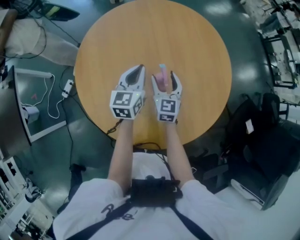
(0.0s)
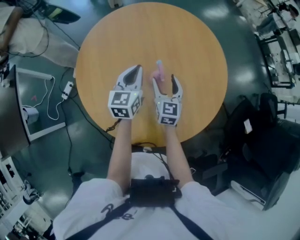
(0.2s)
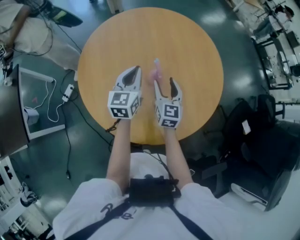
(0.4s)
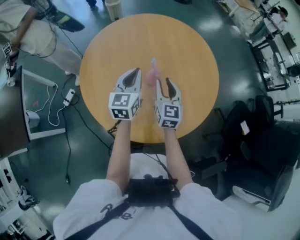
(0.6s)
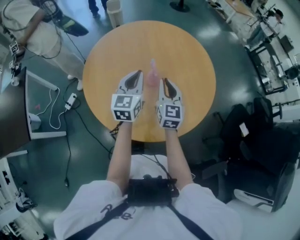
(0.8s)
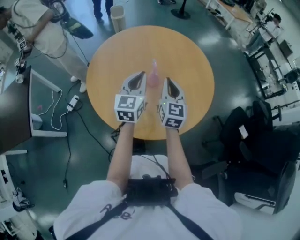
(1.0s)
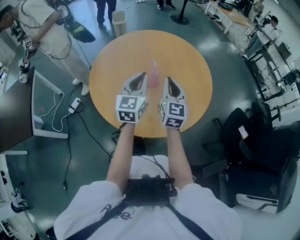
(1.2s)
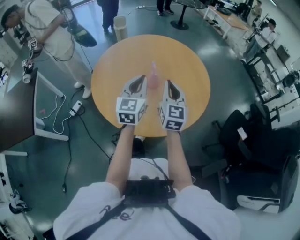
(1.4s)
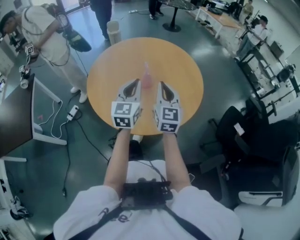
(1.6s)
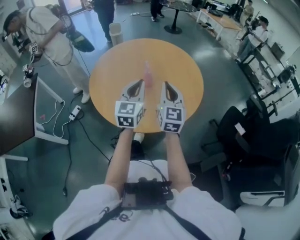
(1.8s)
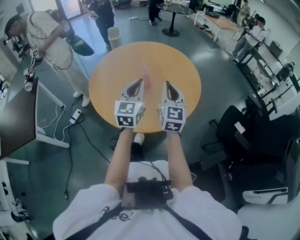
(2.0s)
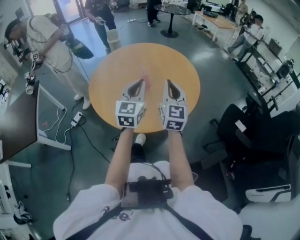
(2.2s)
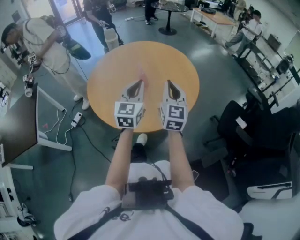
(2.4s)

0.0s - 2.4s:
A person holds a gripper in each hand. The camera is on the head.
0.0s - 1.2s: The left gripper is displaced backward and upward by some 25 cm, while the right gripper heads upward and backward, covering some 25 cm, and closes up.
1.2s - 2.4s: The left gripper moves backward and to the right, roughly 10 cm. The right gripper is displaced backward, to the right and upward by roughly 15 cm.

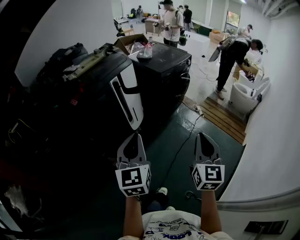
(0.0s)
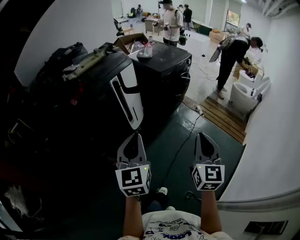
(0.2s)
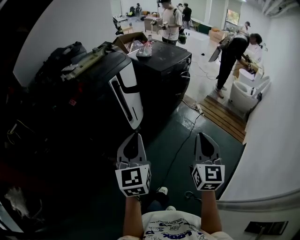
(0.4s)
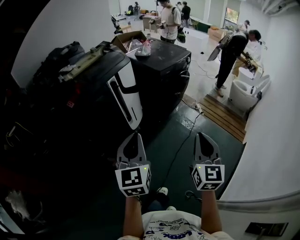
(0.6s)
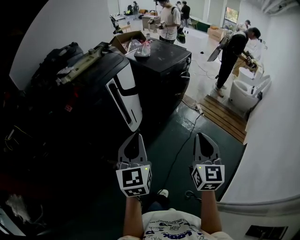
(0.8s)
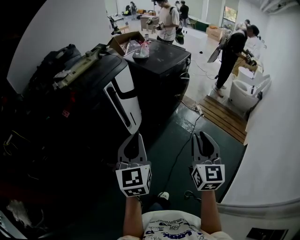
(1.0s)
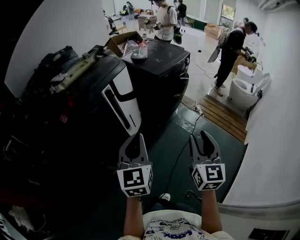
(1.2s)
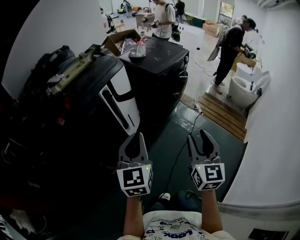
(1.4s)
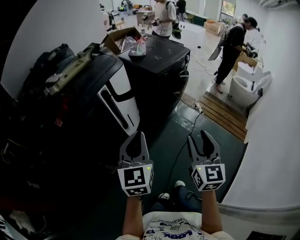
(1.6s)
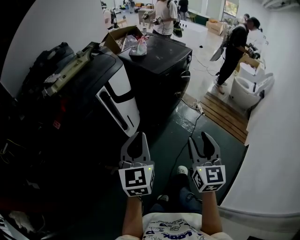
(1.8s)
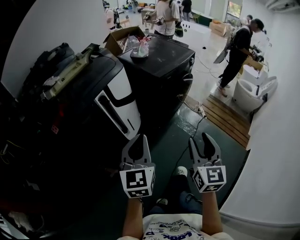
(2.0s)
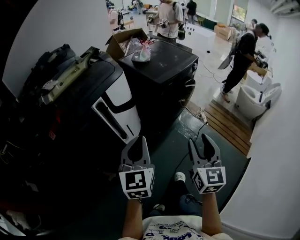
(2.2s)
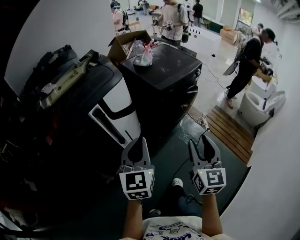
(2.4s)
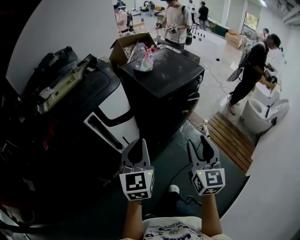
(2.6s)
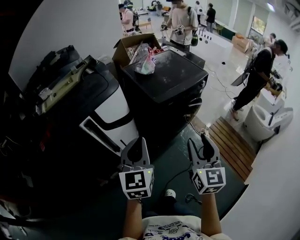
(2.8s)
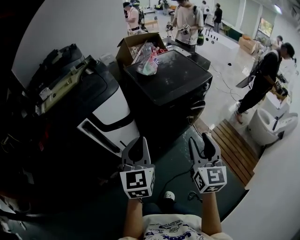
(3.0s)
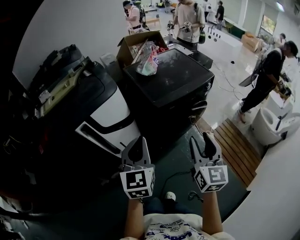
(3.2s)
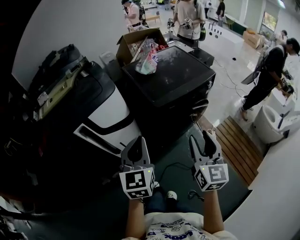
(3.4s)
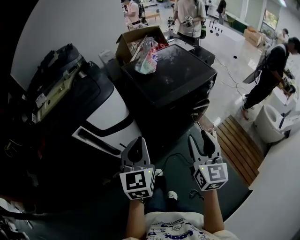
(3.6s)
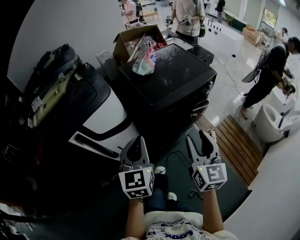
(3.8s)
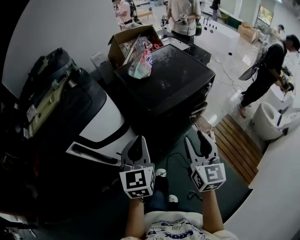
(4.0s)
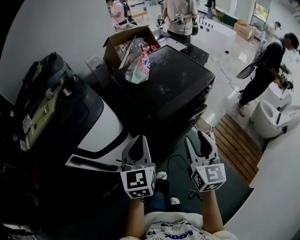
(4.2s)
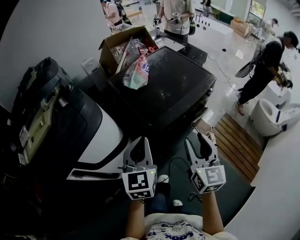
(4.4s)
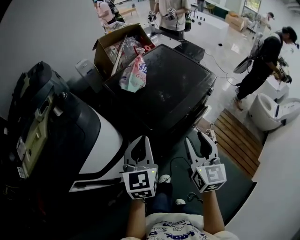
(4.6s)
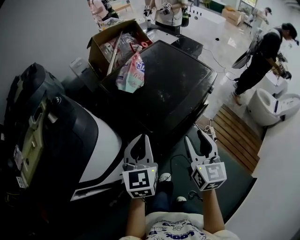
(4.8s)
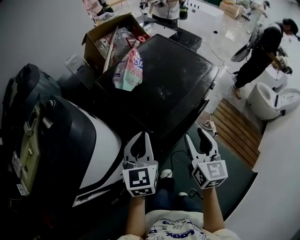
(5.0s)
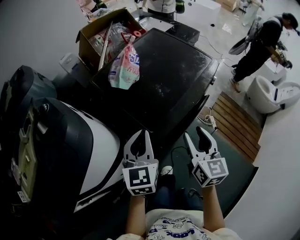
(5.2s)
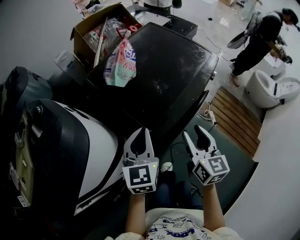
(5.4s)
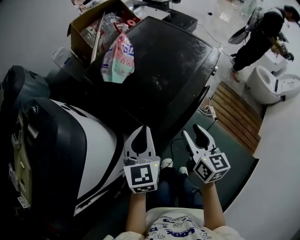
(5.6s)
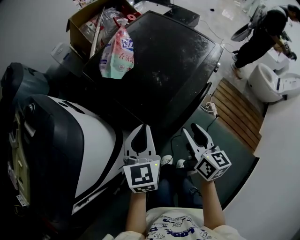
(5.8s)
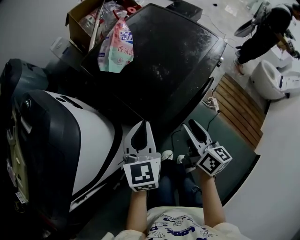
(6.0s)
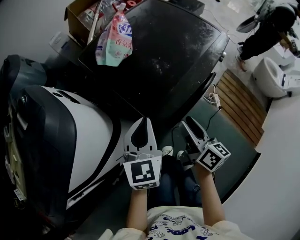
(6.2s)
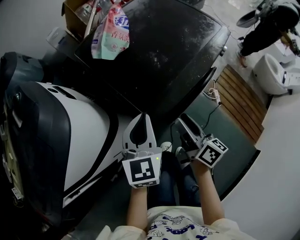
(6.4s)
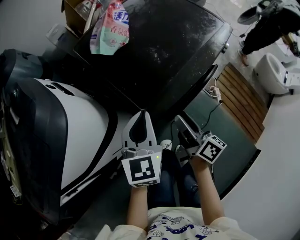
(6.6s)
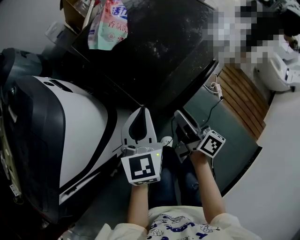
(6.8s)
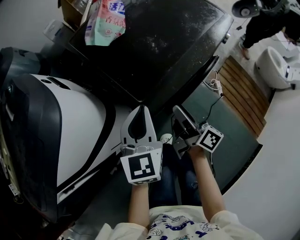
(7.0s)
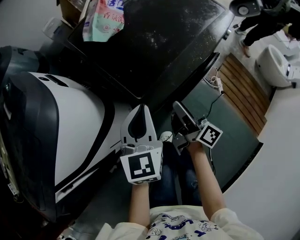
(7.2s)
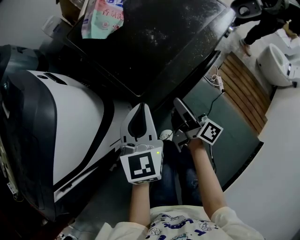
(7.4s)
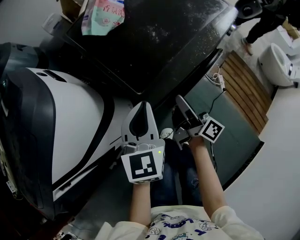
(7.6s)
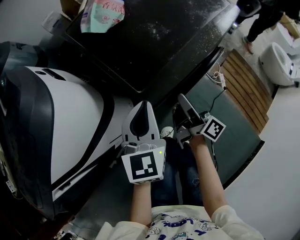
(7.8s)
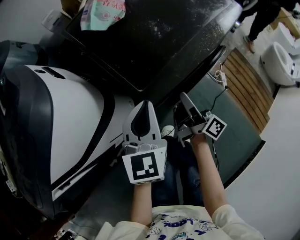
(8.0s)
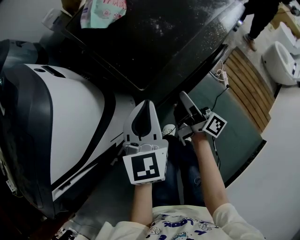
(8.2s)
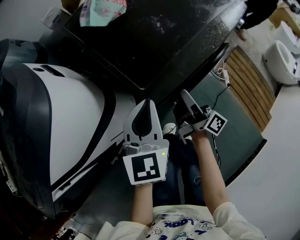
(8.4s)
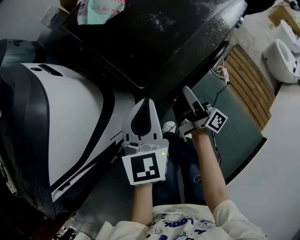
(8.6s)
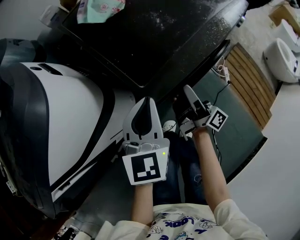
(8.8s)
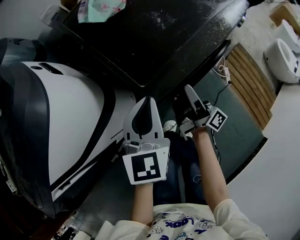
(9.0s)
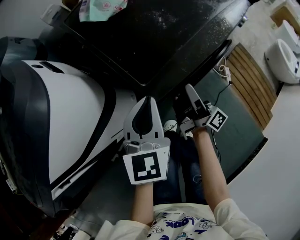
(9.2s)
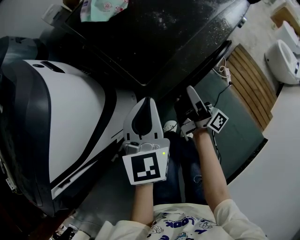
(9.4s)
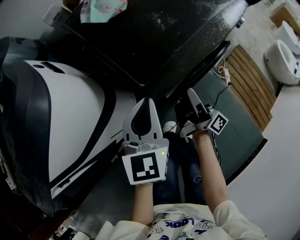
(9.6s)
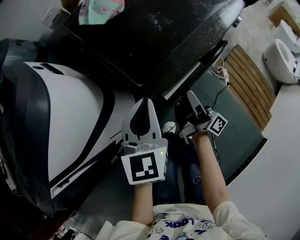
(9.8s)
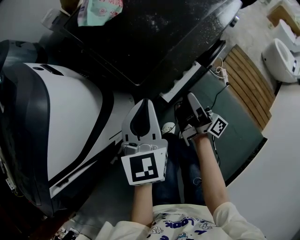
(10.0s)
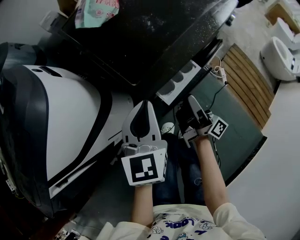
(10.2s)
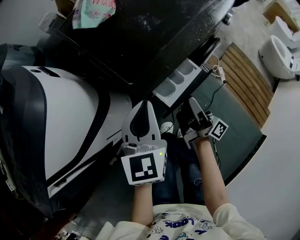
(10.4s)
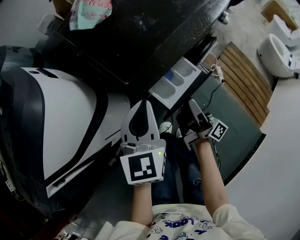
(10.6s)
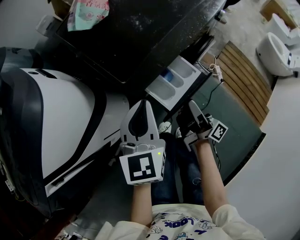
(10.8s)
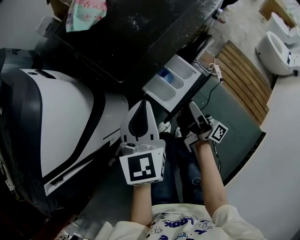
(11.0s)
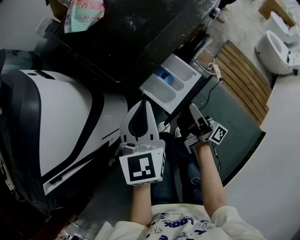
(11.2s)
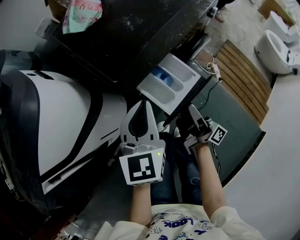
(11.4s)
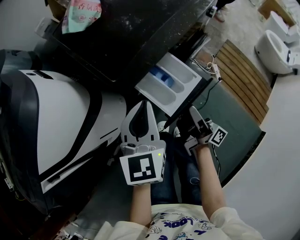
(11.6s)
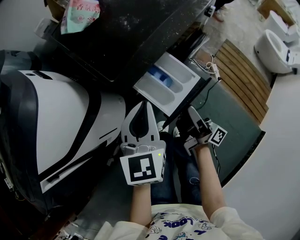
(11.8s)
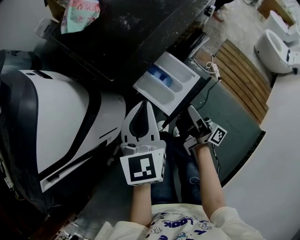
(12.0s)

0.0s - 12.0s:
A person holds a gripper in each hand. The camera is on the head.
0.0s - 1.6s: Both grippers move forward, about 20 cm. The right gripper opens.
1.6s - 3.0s: The grippers both shift forward and to the right by approximately 35 cm.
3.0s - 4.4s: The grippers both shift forward by approximately 25 cm.
4.4s - 6.0s: The right gripper goes roughly 20 cm downward and forward, and rotates some 40 degrees, while the left gripper travels forward and downward by roughly 20 cm.
6.0s - 7.6s: The right gripper moves downward, some 10 cm, and turns by roughly 40 degrees; the left gripper moves downward, some 5 cm.
7.6s - 9.0s: The grippers move only a little.
9.0s - 10.4s: The right gripper travels backward by about 5 cm.
10.4s - 12.0s: The right gripper goes roughly 5 cm backward. The left gripper is displaced to the right by approximately 5 cm.

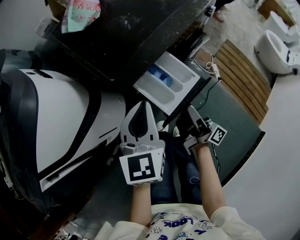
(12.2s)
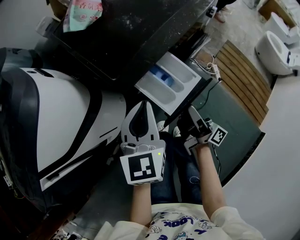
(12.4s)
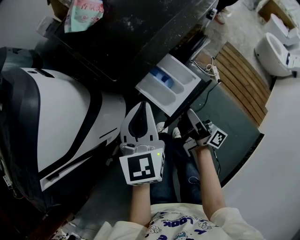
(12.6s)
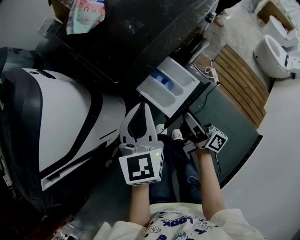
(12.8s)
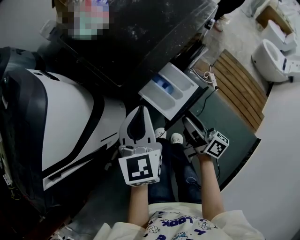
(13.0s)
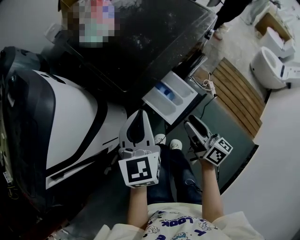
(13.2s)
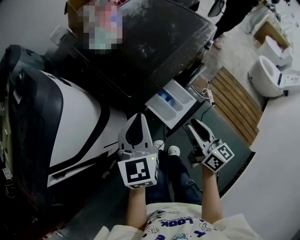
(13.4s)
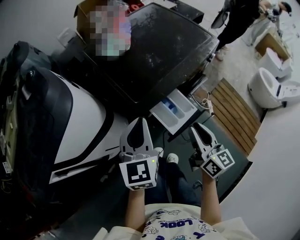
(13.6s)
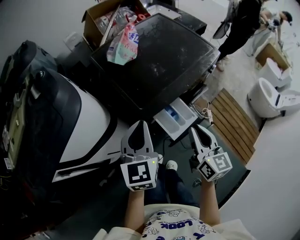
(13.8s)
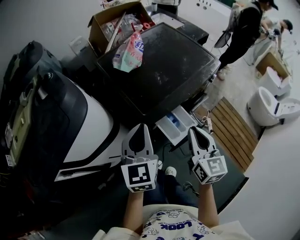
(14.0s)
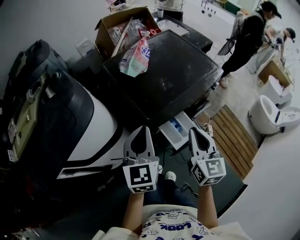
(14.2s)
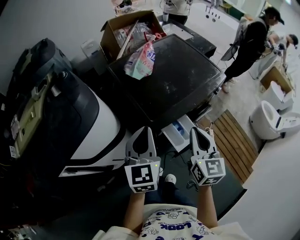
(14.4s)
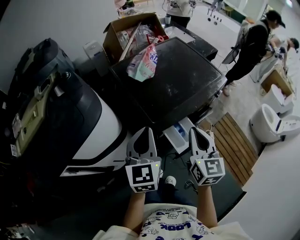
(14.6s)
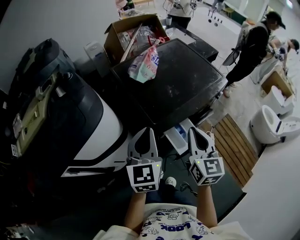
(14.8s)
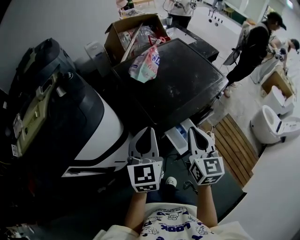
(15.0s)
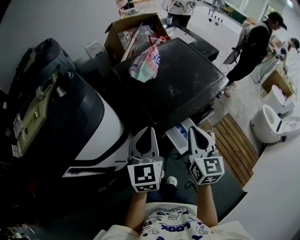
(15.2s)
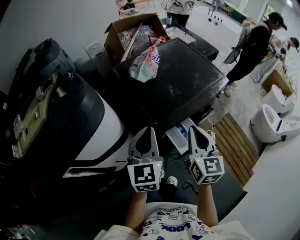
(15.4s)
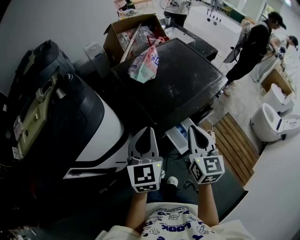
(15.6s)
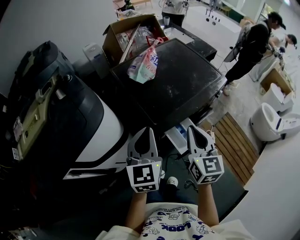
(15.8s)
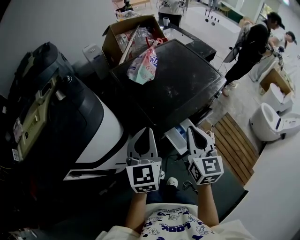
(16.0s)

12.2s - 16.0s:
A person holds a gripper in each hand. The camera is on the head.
12.2s - 13.4s: Both grippers move upward, some 10 cm. The right gripper twists about 50 degrees counterclockwise, seen from behind.
13.4s - 14.8s: The two grippers go approximately 15 cm upward and to the left. The right gripper rotates roughly 30 degrees, and closes.
14.8s - 16.0s: Neither gripper changes place.

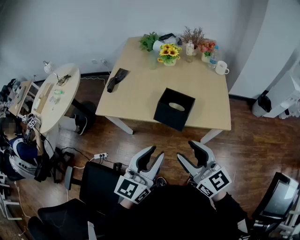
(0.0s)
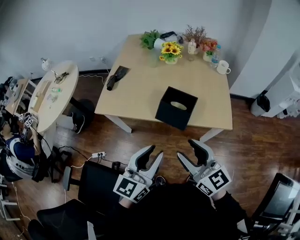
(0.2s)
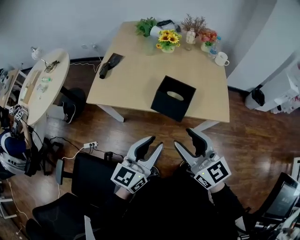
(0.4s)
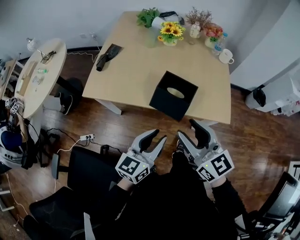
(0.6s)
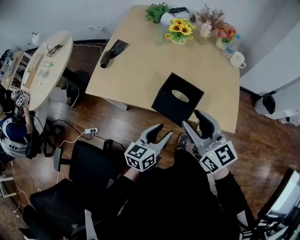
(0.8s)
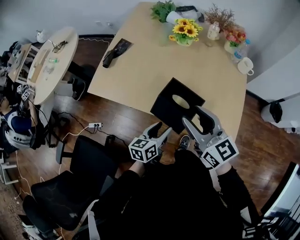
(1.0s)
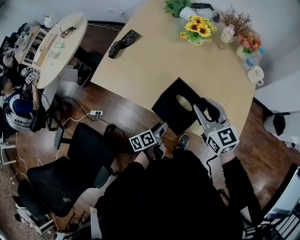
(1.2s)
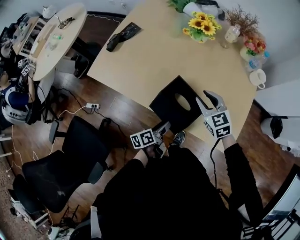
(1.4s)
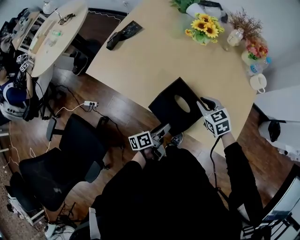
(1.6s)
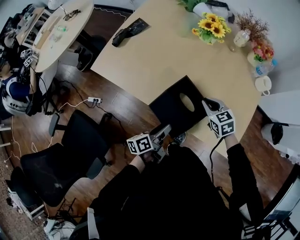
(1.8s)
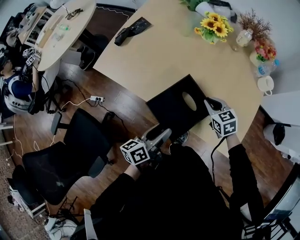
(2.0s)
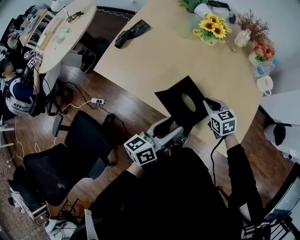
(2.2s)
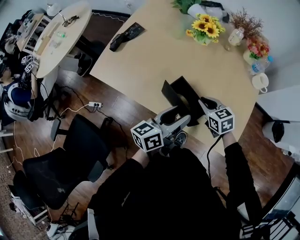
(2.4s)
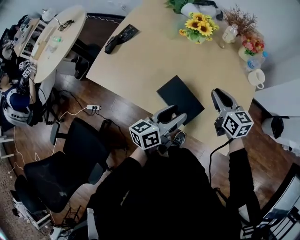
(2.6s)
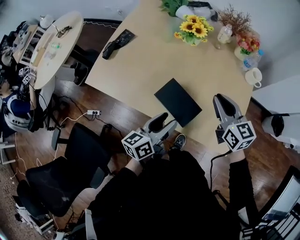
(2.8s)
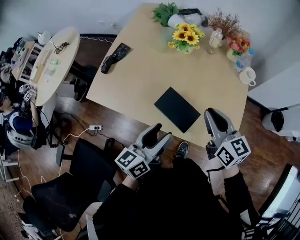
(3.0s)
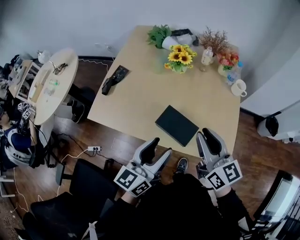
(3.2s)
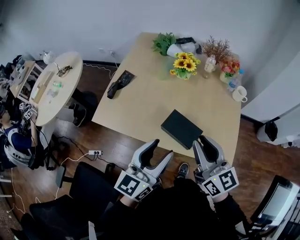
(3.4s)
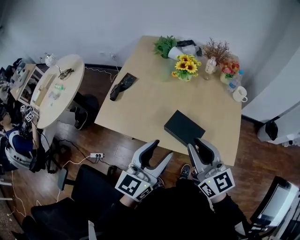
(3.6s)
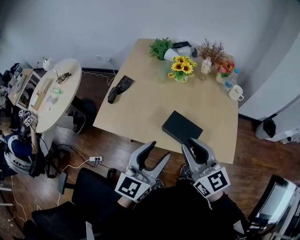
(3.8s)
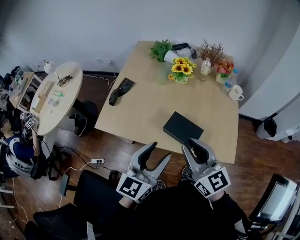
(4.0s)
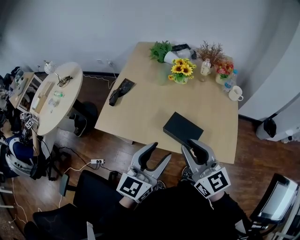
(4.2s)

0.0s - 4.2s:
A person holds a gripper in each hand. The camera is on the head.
0.0s - 1.4s: The right gripper goes about 40 cm forward and downward, and angles its fingers downward, by some 30 degrees. The left gripper travels downward and forward by about 40 cm, twists about 60 degrees counterclockwise, seen from behind, and opens.
1.4s - 2.8s: The right gripper heads upward and to the right, covering about 15 cm, rotates about 30 degrees, and closes up, while the left gripper shifts about 20 cm upward, and changes its angle by about 30 degrees.
2.8s - 4.2s: The right gripper travels backward, to the left and upward by roughly 25 cm; the left gripper moves upward, to the left and backward, about 20 cm, and changes its angle by about 40 degrees.

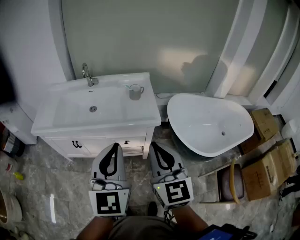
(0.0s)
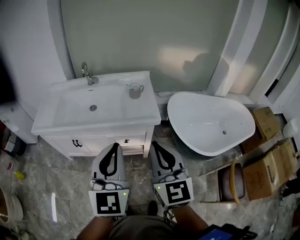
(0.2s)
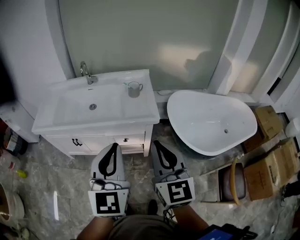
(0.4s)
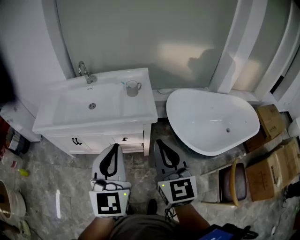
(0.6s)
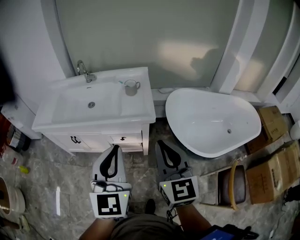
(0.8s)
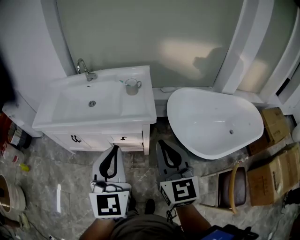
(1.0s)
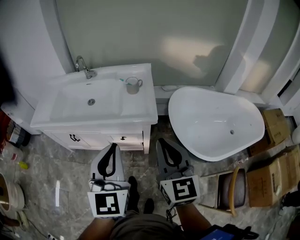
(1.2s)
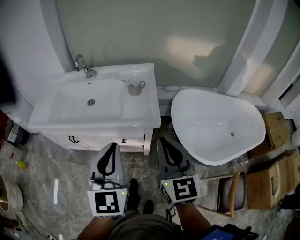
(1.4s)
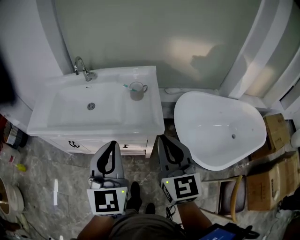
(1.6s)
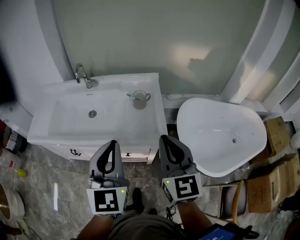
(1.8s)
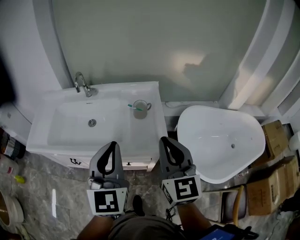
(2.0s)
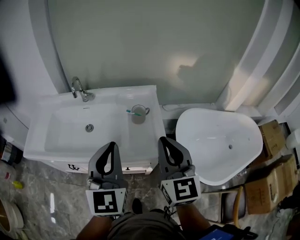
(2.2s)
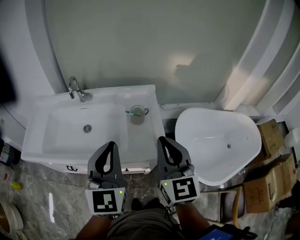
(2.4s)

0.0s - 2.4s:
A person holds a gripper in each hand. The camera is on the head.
0.0s - 1.2s: The left gripper is displaced to the right by about 10 cm. The right gripper travels to the right and forward by some 10 cm.
1.2s - 2.4s: Both grippers travel together forward, approximately 20 cm.
